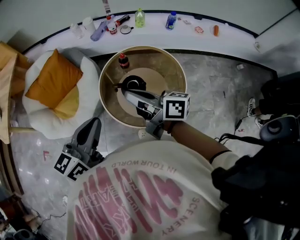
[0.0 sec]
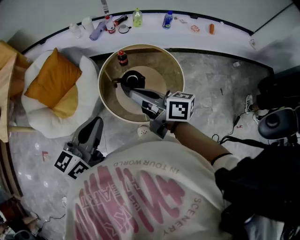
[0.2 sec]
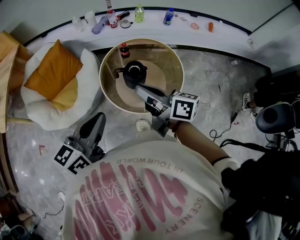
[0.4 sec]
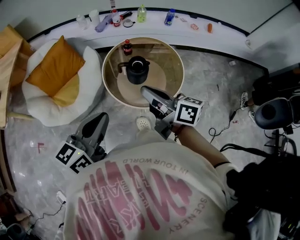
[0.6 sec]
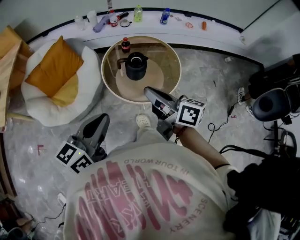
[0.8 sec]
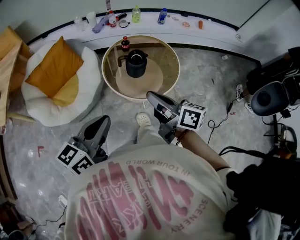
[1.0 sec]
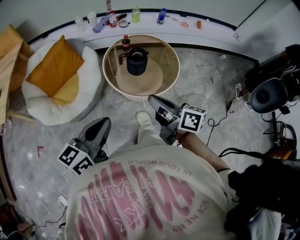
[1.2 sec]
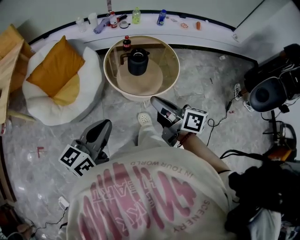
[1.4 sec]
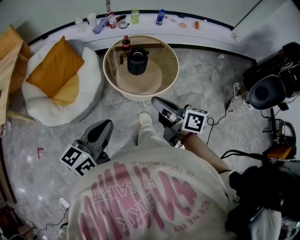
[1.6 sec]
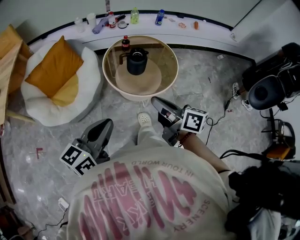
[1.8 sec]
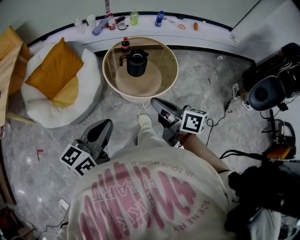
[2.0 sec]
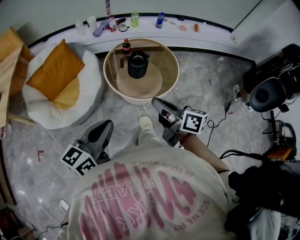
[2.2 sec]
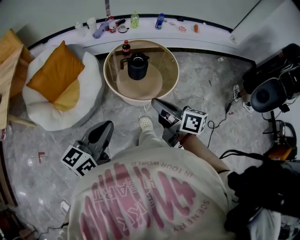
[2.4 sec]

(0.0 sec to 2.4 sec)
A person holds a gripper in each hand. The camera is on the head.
0.0 sec - 1.2 sec: Both grippers move backward, roughly 25 cm. The right gripper changes its angle by some 20 degrees.
1.2 sec - 2.4 sec: The grippers make only small movements.

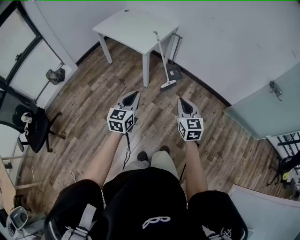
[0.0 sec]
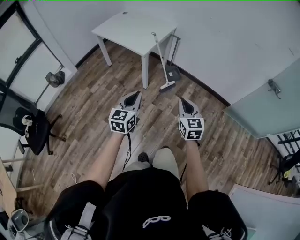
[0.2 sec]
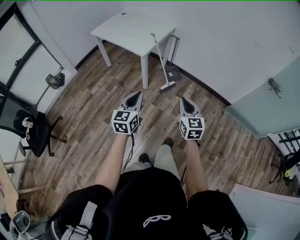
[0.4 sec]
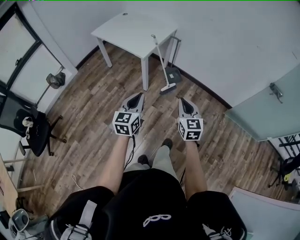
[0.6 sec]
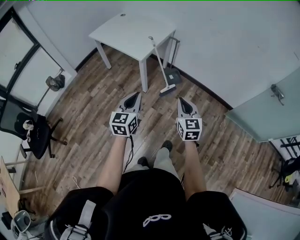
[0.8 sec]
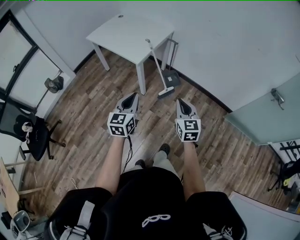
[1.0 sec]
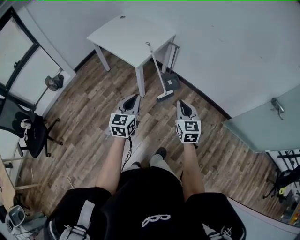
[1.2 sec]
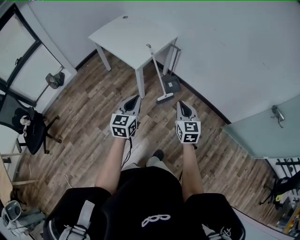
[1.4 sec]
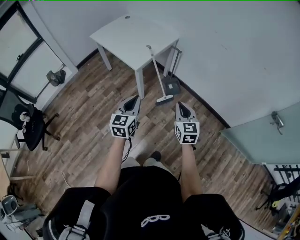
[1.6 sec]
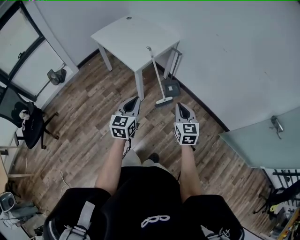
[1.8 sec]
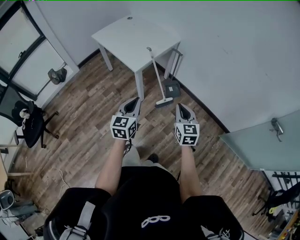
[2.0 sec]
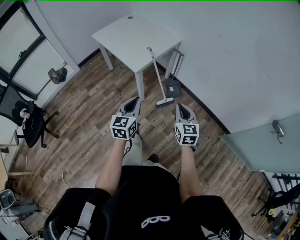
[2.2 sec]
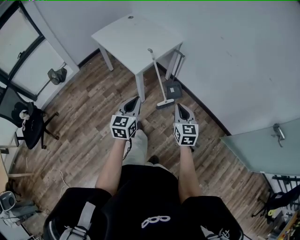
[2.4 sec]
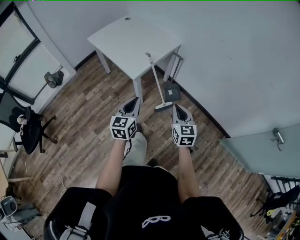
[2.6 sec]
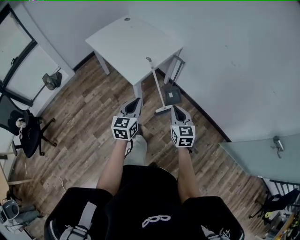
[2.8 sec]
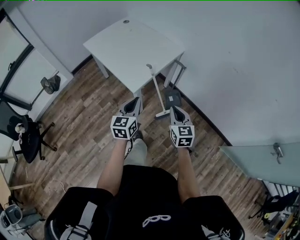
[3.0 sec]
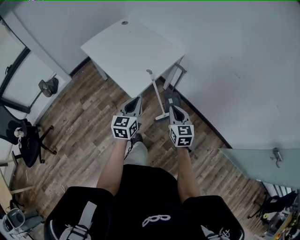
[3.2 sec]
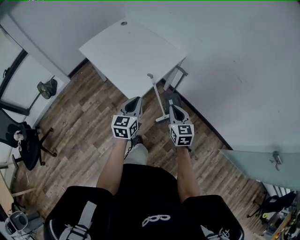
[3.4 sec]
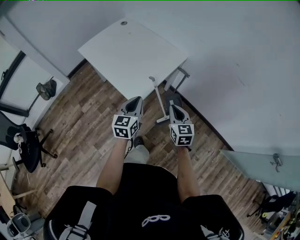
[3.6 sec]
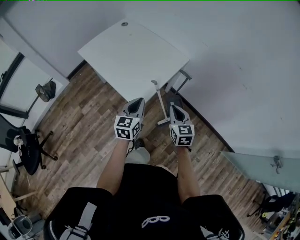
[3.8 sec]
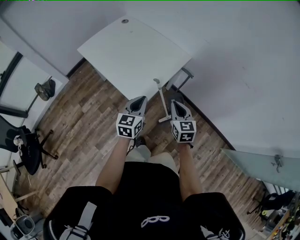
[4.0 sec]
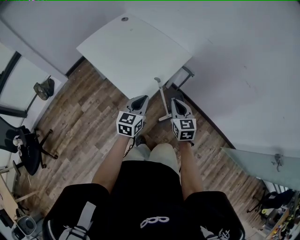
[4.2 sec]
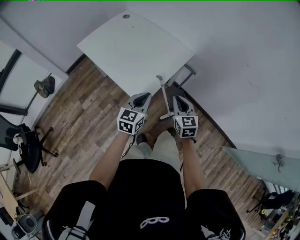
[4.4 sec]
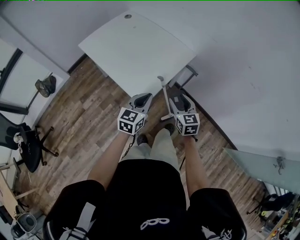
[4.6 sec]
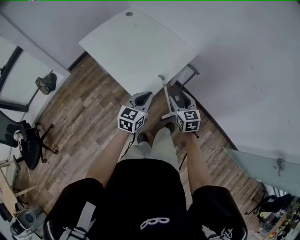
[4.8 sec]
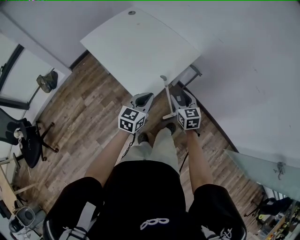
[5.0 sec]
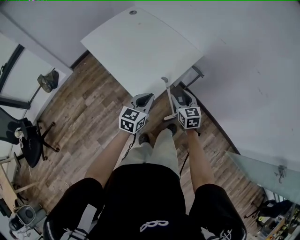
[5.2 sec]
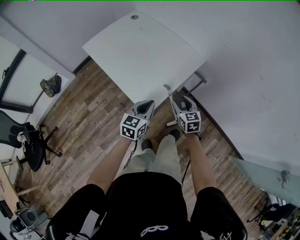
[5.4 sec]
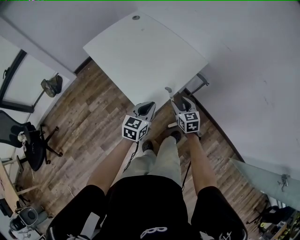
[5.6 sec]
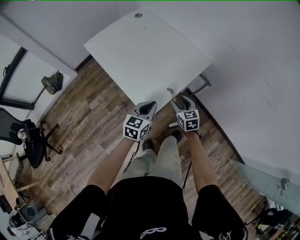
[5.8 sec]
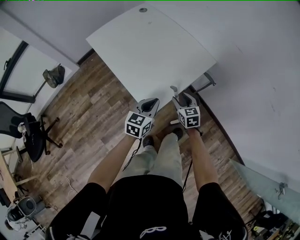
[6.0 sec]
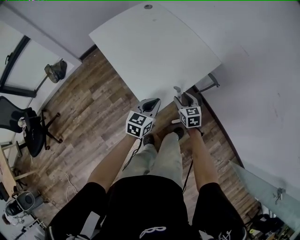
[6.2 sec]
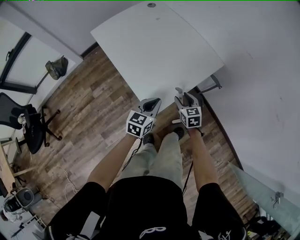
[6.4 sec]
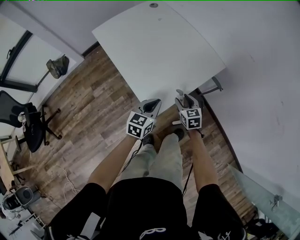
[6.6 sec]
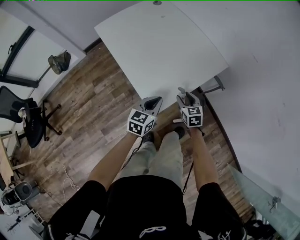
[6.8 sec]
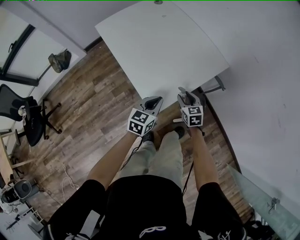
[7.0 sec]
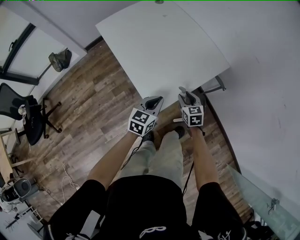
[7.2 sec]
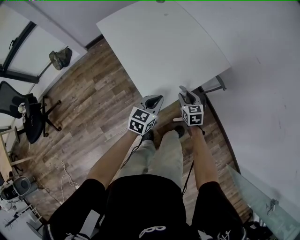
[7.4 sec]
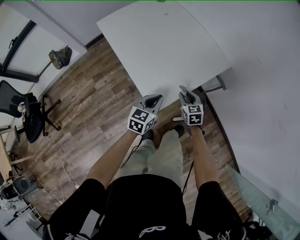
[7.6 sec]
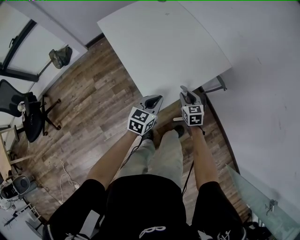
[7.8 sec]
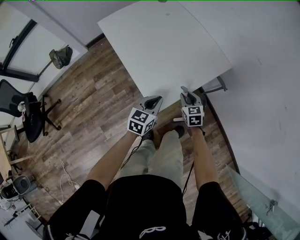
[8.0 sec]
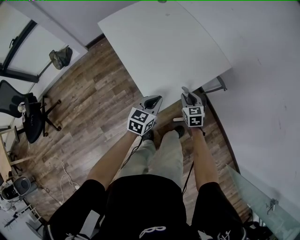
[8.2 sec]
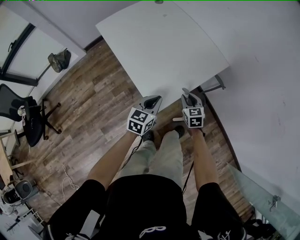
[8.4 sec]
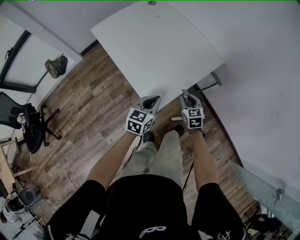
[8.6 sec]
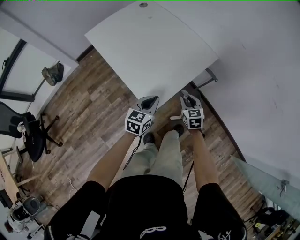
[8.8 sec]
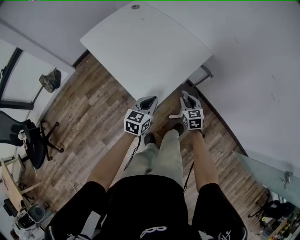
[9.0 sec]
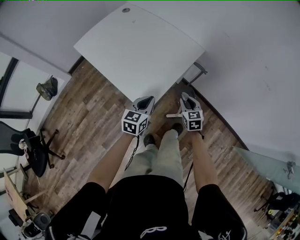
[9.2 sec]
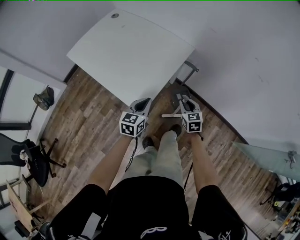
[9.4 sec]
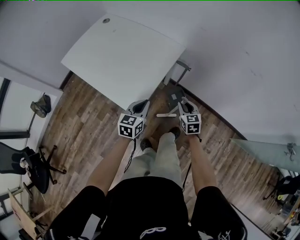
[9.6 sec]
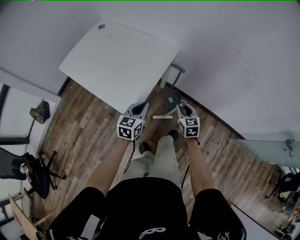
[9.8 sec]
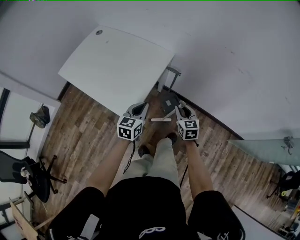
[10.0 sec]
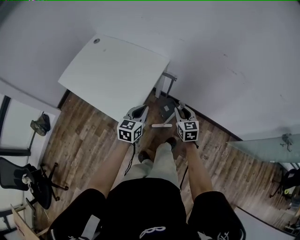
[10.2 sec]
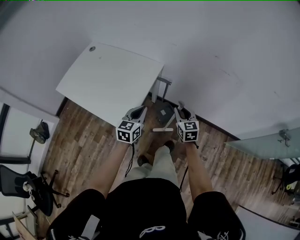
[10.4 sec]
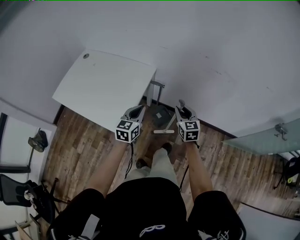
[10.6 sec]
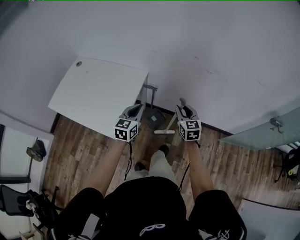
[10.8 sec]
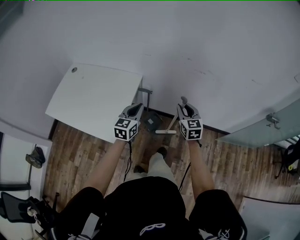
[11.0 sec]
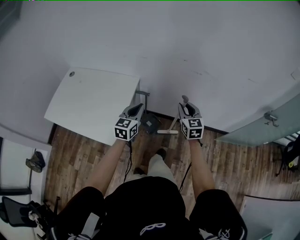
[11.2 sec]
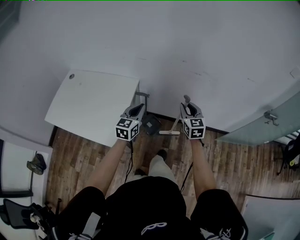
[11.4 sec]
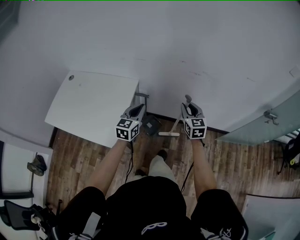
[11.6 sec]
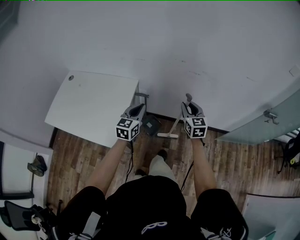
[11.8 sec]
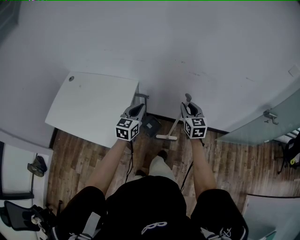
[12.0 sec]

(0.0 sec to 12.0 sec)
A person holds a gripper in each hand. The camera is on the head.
0.0 sec - 1.6 sec: The two grippers go some 20 cm forward and to the right.
1.6 sec - 3.0 sec: Both grippers travel together forward, approximately 25 cm.
3.0 sec - 4.4 sec: The right gripper goes approximately 20 cm forward and to the left. Meanwhile the left gripper moves forward, approximately 15 cm.
4.4 sec - 6.0 sec: The right gripper heads downward and forward, covering some 20 cm, and opens. The left gripper is displaced downward and forward by some 10 cm.
6.0 sec - 7.6 sec: The right gripper moves some 5 cm, and closes.
7.6 sec - 9.0 sec: The right gripper travels to the right and backward by approximately 10 cm.
9.0 sec - 10.4 sec: The two grippers go about 20 cm to the right and upward. The right gripper rotates roughly 20 degrees.
10.4 sec - 12.0 sec: The right gripper heads to the right and upward, covering about 20 cm. Meanwhile the left gripper heads upward, to the right and forward, covering some 15 cm.

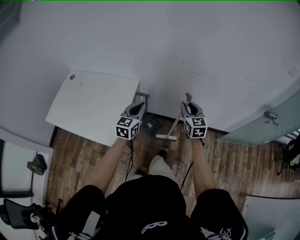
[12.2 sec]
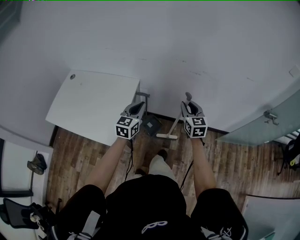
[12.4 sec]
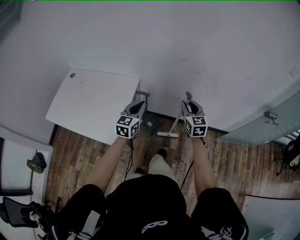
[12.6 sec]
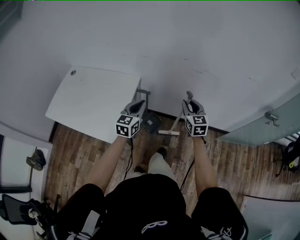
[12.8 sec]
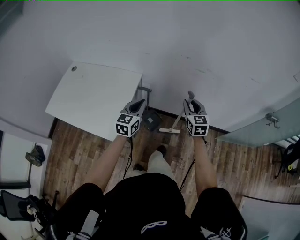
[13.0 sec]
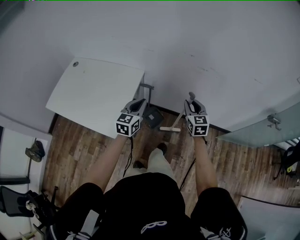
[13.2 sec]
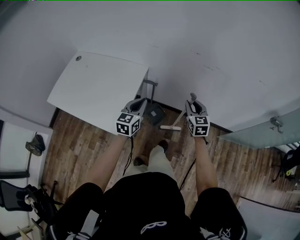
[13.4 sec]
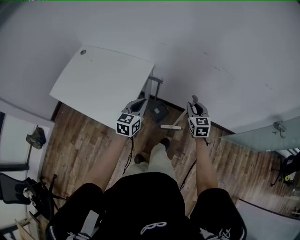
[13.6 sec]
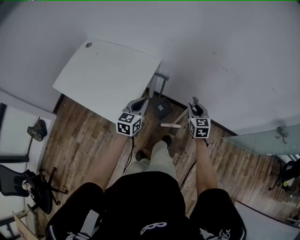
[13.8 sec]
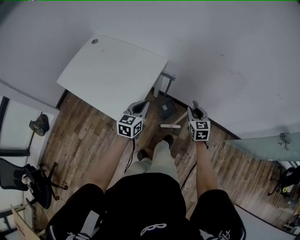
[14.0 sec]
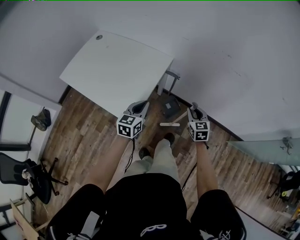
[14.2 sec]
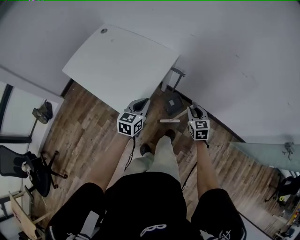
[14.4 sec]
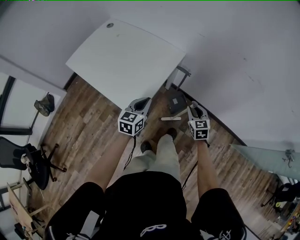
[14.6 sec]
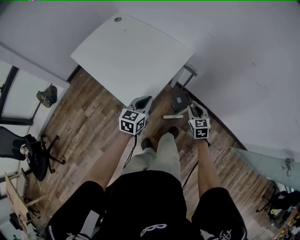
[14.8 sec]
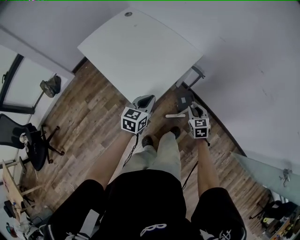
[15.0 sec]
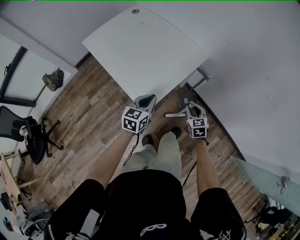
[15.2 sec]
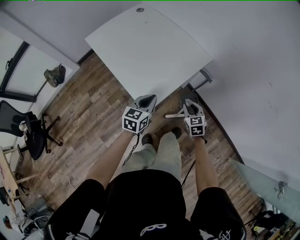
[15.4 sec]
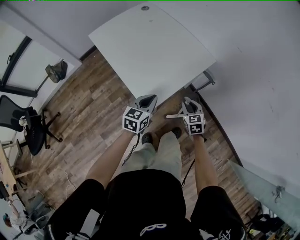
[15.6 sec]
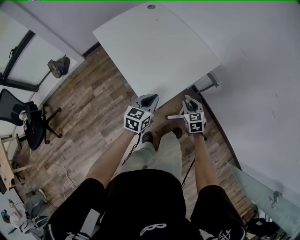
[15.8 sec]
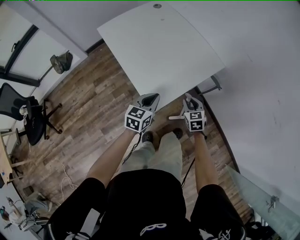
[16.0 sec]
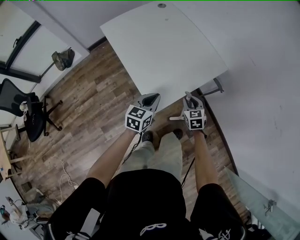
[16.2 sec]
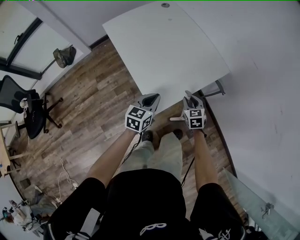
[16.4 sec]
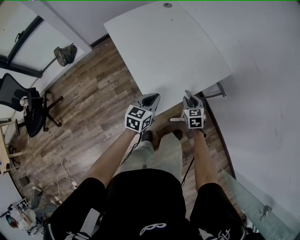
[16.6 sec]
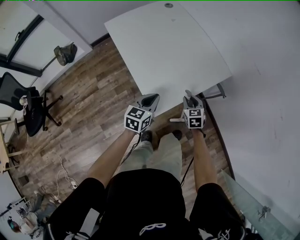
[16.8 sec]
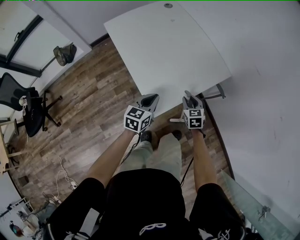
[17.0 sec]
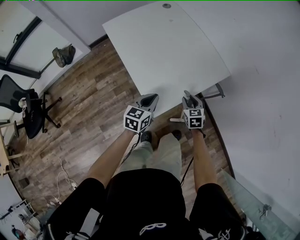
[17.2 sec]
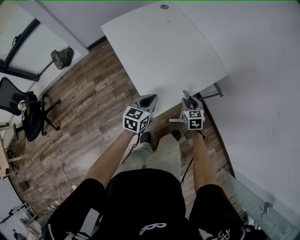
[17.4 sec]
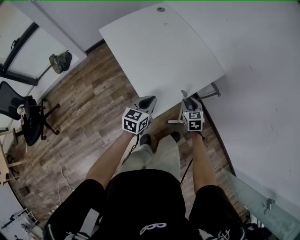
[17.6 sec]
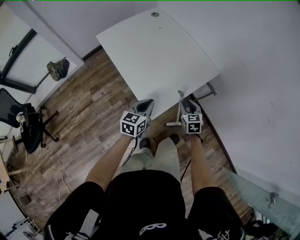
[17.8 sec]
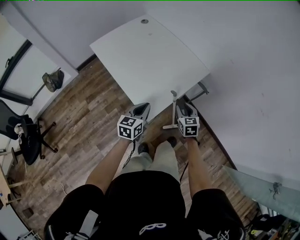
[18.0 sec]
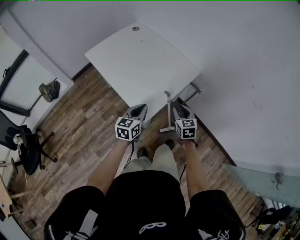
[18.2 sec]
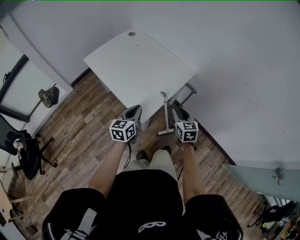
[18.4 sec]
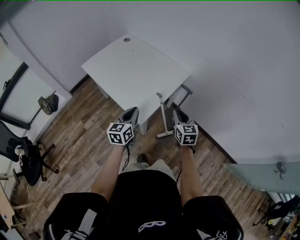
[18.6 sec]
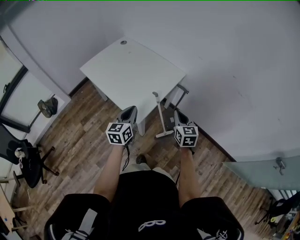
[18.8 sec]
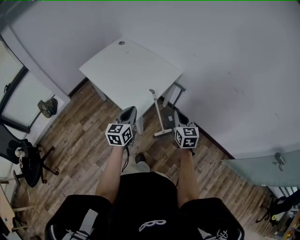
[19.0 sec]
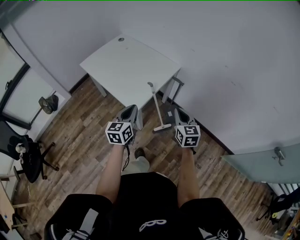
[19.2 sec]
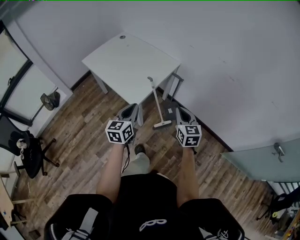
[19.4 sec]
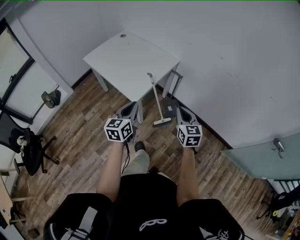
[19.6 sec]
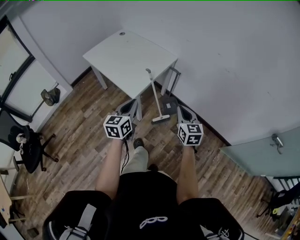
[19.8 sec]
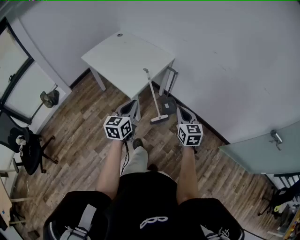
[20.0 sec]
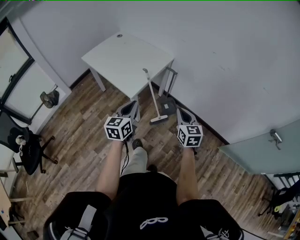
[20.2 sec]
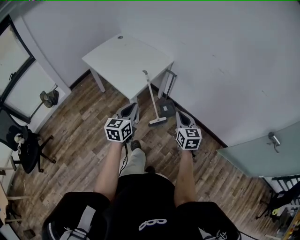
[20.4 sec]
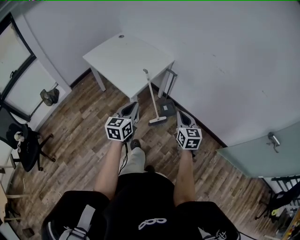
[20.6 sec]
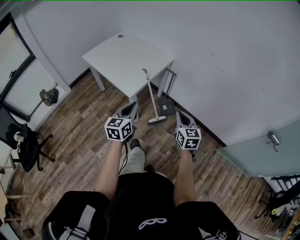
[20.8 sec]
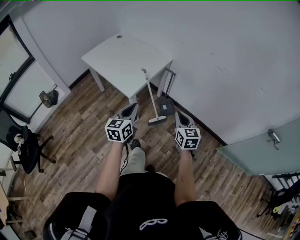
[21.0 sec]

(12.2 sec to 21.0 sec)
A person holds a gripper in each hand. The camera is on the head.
12.2 sec - 13.6 sec: The grippers both shift downward by roughly 5 cm.
13.6 sec - 15.2 sec: The two grippers go approximately 20 cm to the left and downward. The left gripper rotates approximately 20 degrees. Meanwhile the right gripper turns by some 30 degrees.
15.2 sec - 16.6 sec: The right gripper goes roughly 15 cm to the left and forward; the left gripper moves to the left, roughly 5 cm.
16.6 sec - 18.0 sec: The left gripper moves approximately 5 cm. The right gripper moves upward and backward, roughly 10 cm.
18.0 sec - 19.6 sec: The right gripper is displaced backward, upward and to the right by approximately 35 cm, turns by about 20 degrees, and closes its fingers, while the left gripper goes some 30 cm backward and upward.
19.6 sec - 21.0 sec: Both grippers move backward, approximately 10 cm.
